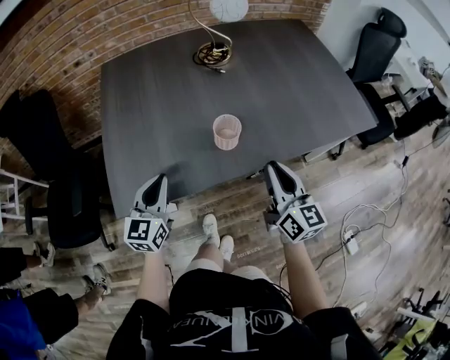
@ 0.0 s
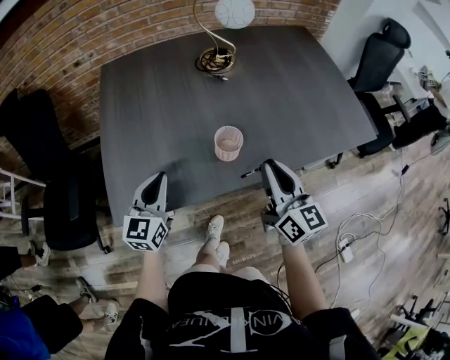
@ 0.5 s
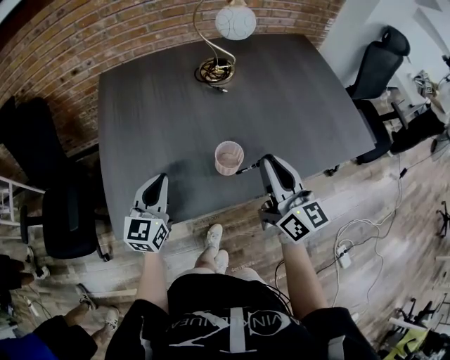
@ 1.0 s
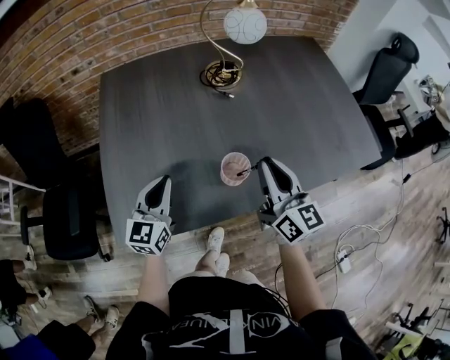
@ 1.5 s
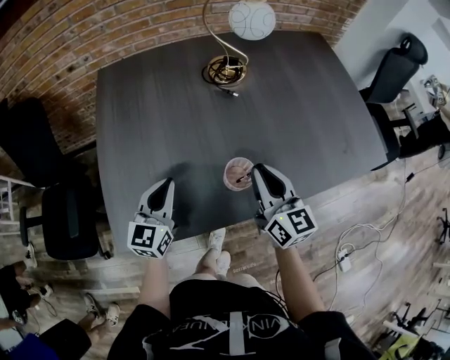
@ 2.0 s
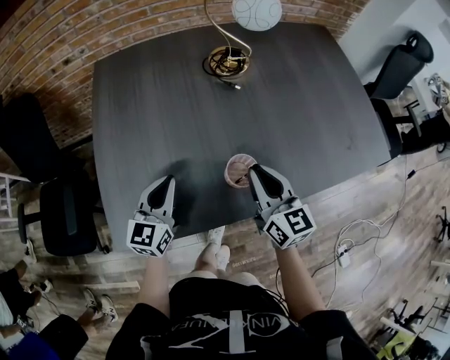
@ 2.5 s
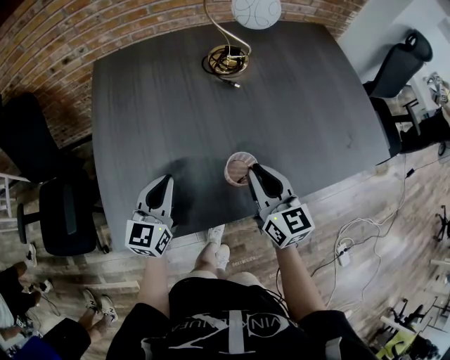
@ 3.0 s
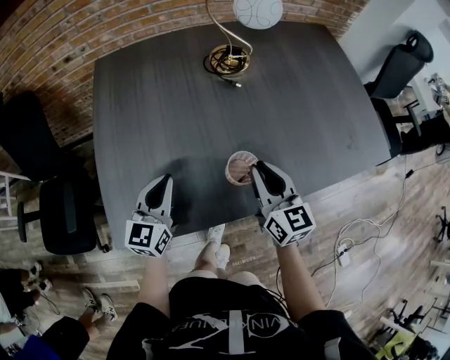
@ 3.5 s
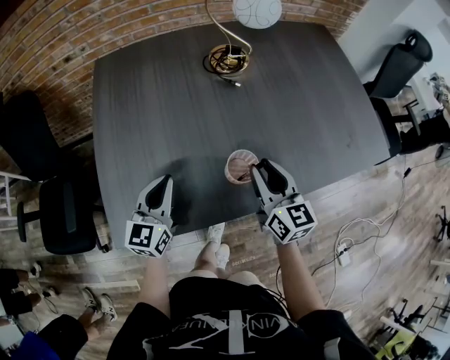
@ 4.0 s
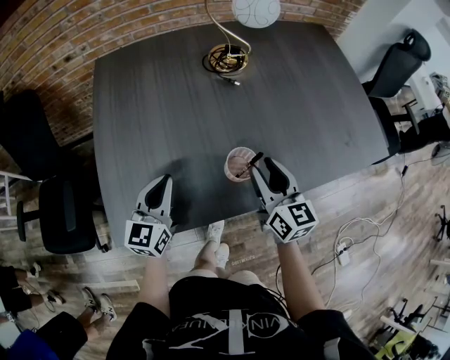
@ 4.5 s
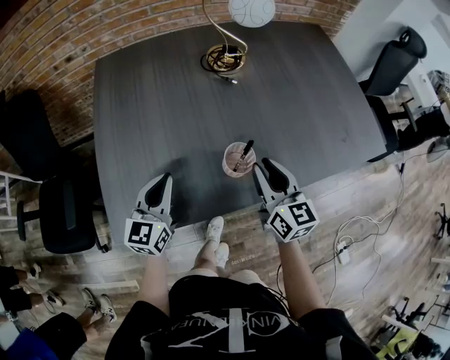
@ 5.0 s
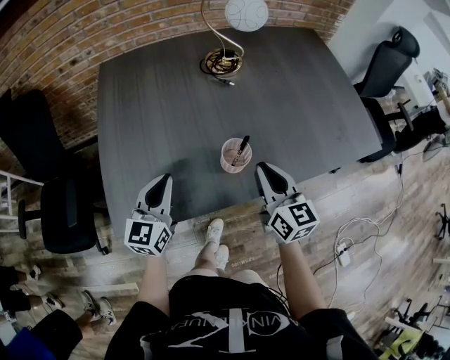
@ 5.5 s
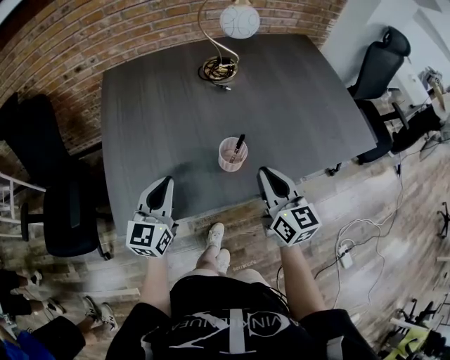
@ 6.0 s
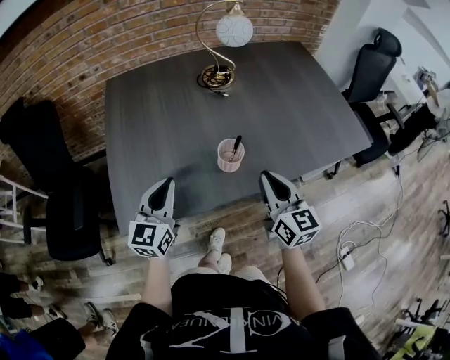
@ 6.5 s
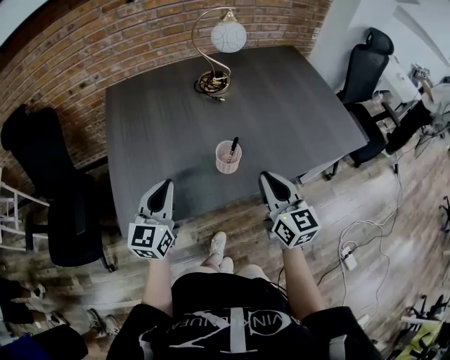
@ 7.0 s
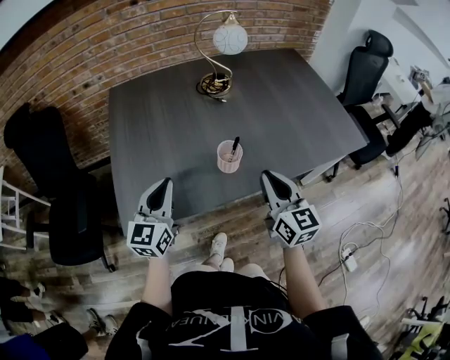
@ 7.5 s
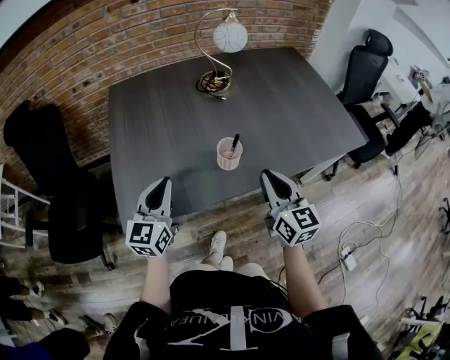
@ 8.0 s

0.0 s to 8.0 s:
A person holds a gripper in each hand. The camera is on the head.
0.0 to 2.0 s: The right gripper shifts roughly 15 cm forward and to the left; the left gripper moves forward, roughly 10 cm.
2.0 to 4.0 s: The grippers stay close to where they were, moving slightly.
4.0 to 6.0 s: The two grippers go roughly 5 cm backward.
6.0 to 8.0 s: The left gripper changes place by roughly 5 cm, while the right gripper moves backward, about 5 cm.

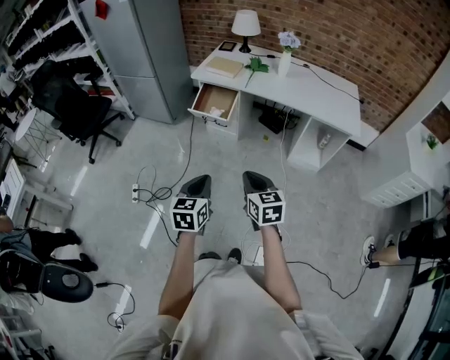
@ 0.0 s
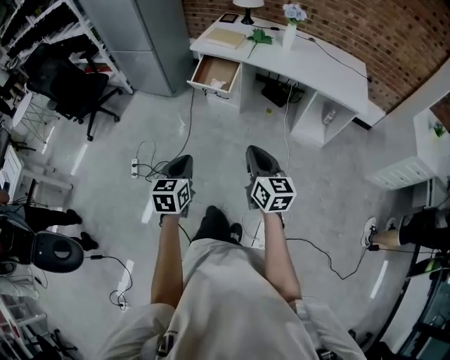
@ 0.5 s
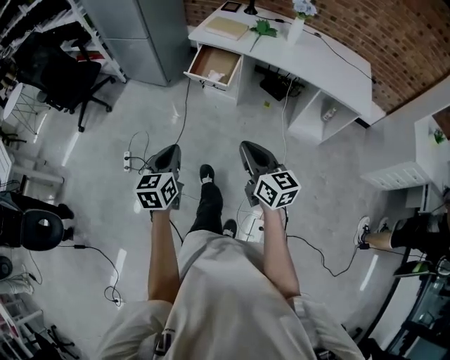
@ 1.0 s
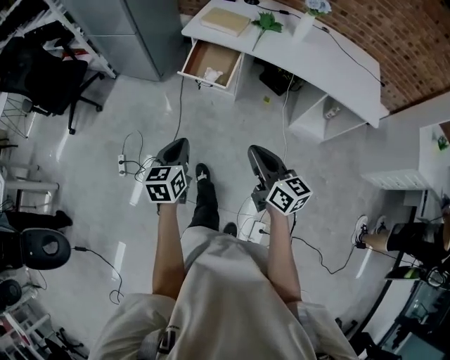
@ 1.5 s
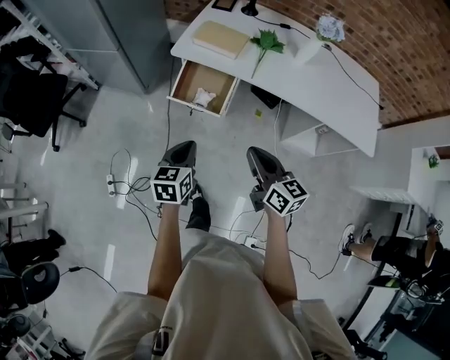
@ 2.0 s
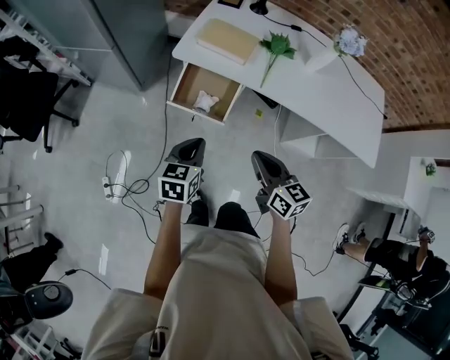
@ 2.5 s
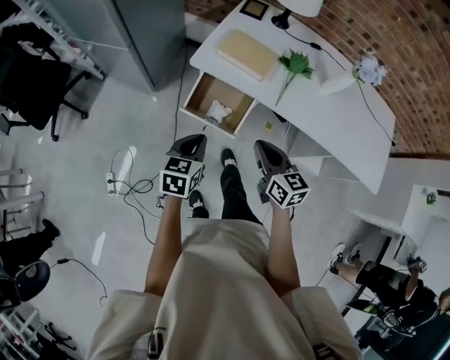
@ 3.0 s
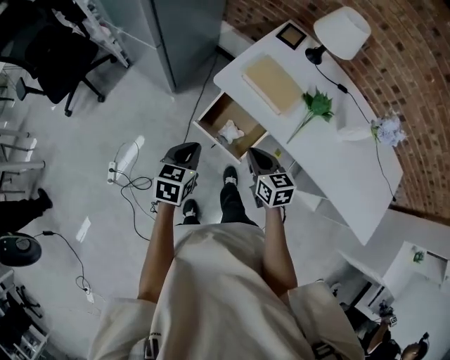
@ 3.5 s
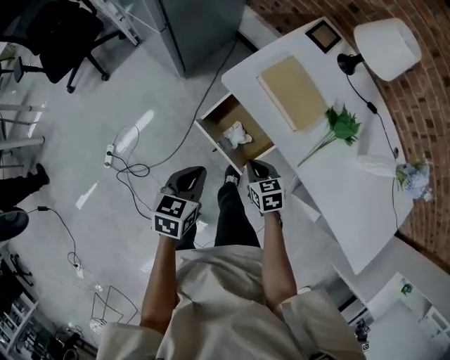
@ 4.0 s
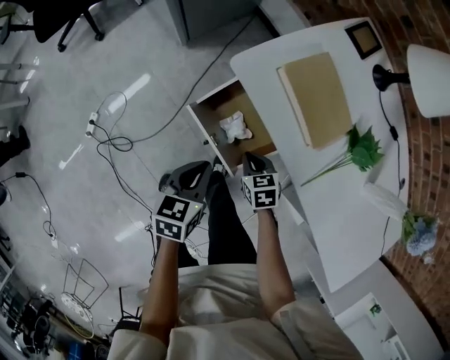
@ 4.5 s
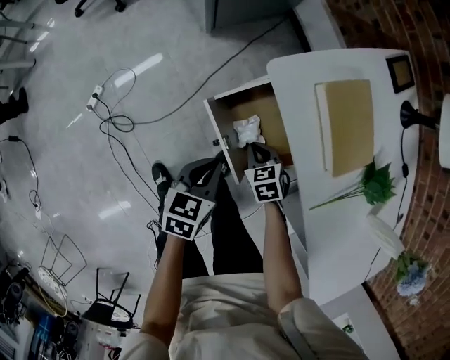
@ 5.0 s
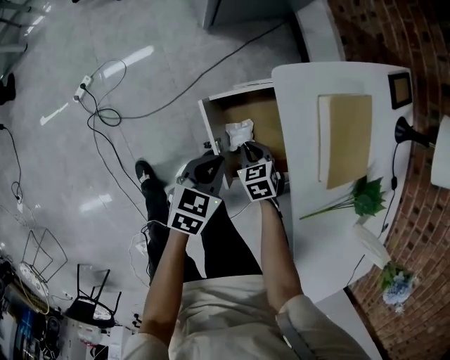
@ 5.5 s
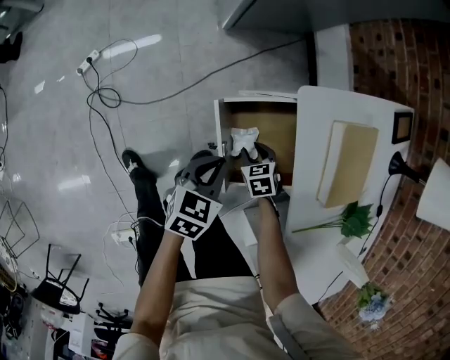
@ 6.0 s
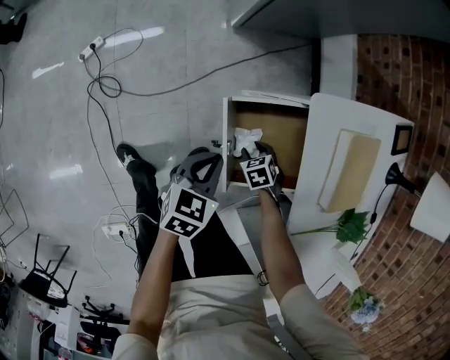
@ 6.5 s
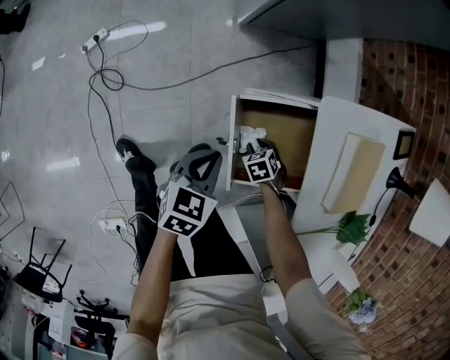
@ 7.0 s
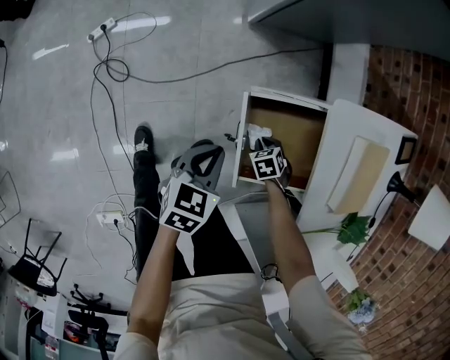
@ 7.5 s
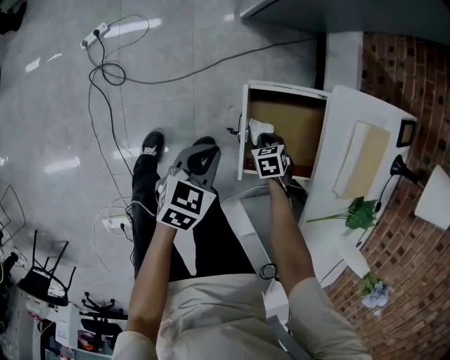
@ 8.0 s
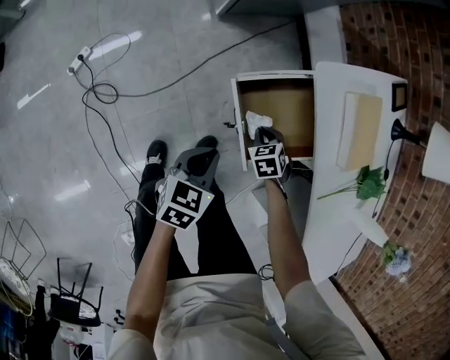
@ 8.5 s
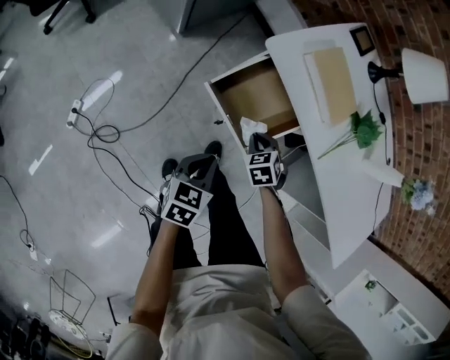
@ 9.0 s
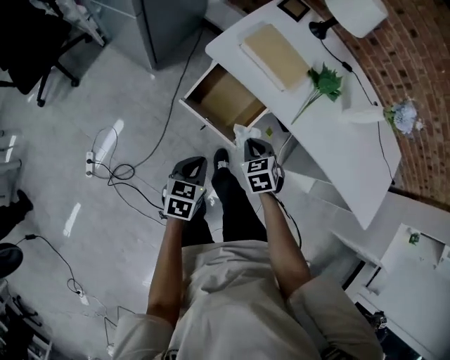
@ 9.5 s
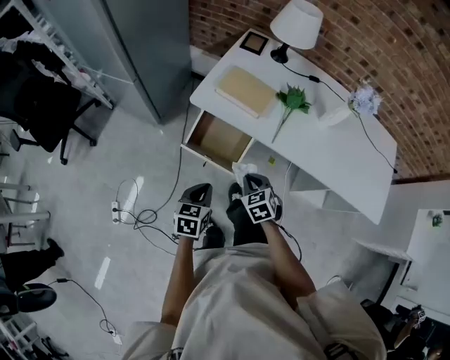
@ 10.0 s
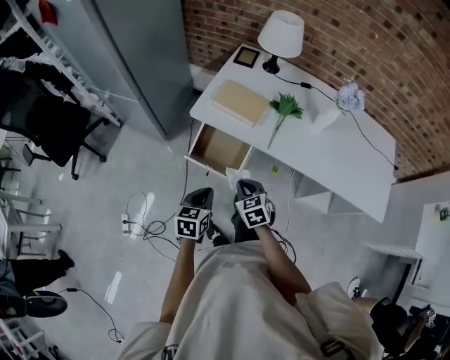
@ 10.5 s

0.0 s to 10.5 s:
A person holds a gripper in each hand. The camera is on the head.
0.0 to 2.0 s: Both grippers move forward, some 40 cm.
2.0 to 4.0 s: The right gripper shifts roughly 40 cm forward and downward, and tips its fingers downward by approximately 40 degrees. The left gripper travels forward and downward by about 25 cm.
4.0 to 6.5 s: The grippers both shift downward by roughly 20 cm. The left gripper turns by some 20 degrees; the right gripper twists approximately 40 degrees counterclockwise, seen from behind, and opens up.
6.5 to 8.5 s: The right gripper heads upward, covering approximately 5 cm, and closes its fingers. Meanwhile the left gripper moves roughly 10 cm.
8.5 to 10.5 s: The right gripper travels upward and backward by roughly 35 cm, and twists some 40 degrees clockwise, seen from behind. The left gripper goes some 20 cm upward, and rotates some 30 degrees.

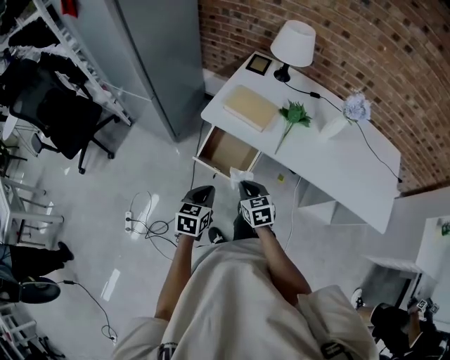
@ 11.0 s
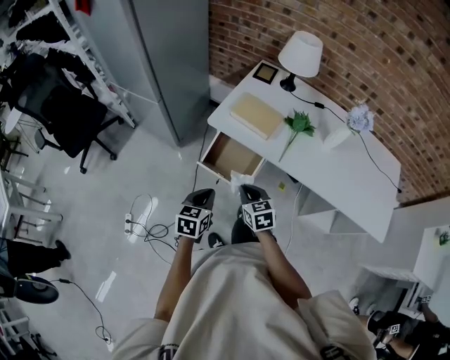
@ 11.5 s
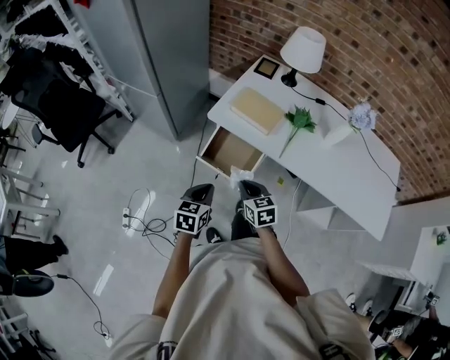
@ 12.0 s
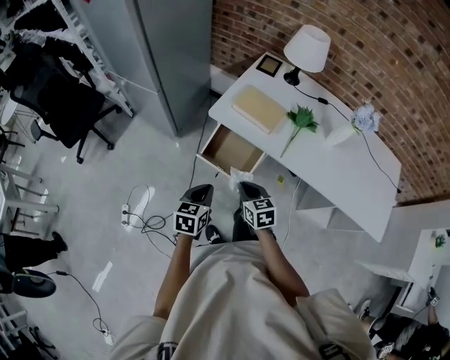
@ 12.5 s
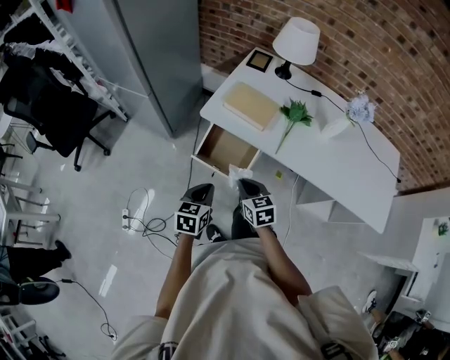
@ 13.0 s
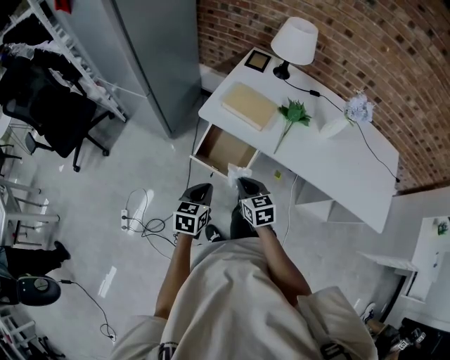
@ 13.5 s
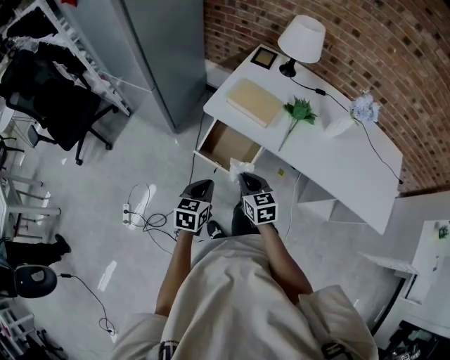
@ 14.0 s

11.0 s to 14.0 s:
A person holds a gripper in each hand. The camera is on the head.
11.0 to 14.0 s: The grippers stay close to where they were, moving slightly.

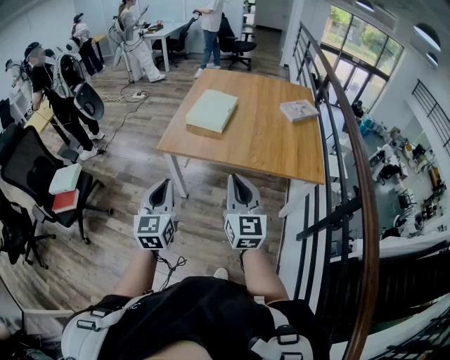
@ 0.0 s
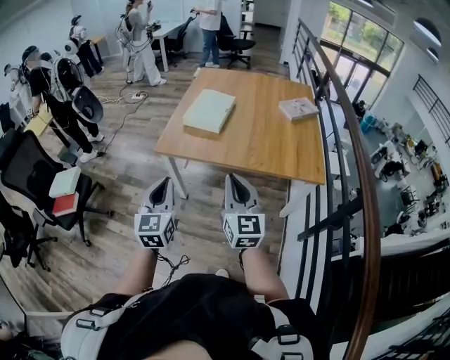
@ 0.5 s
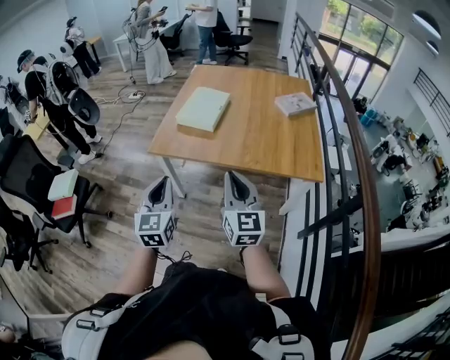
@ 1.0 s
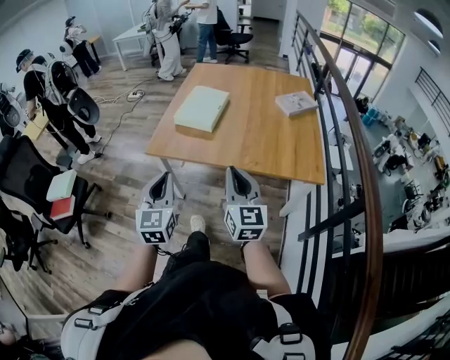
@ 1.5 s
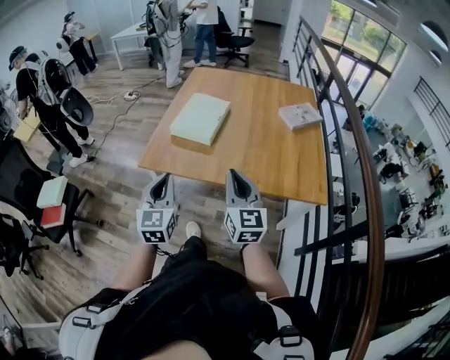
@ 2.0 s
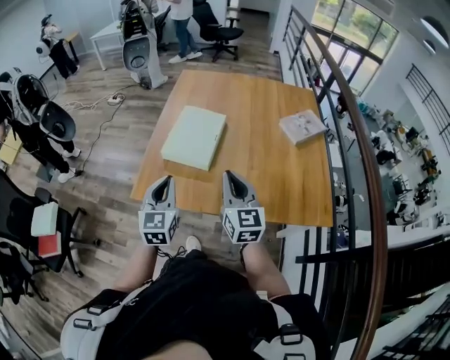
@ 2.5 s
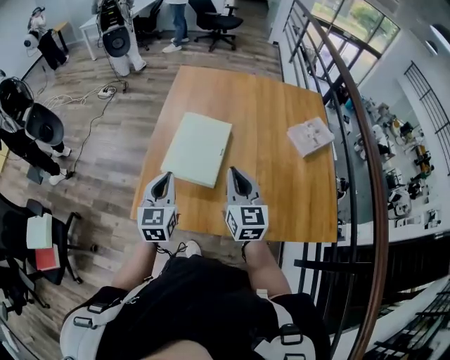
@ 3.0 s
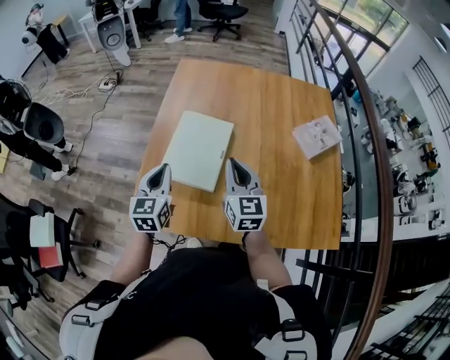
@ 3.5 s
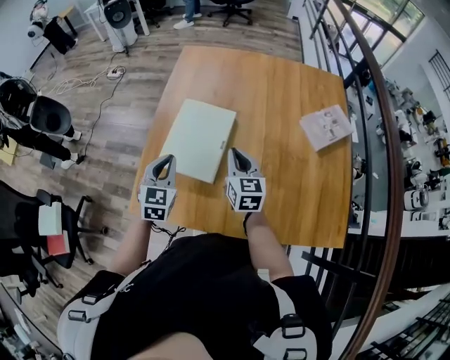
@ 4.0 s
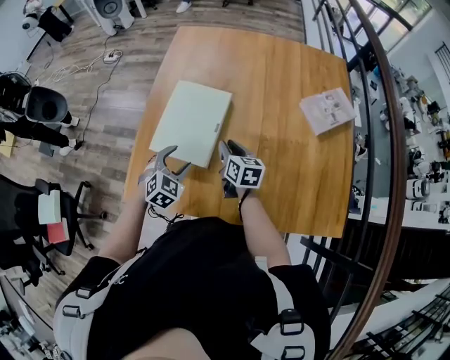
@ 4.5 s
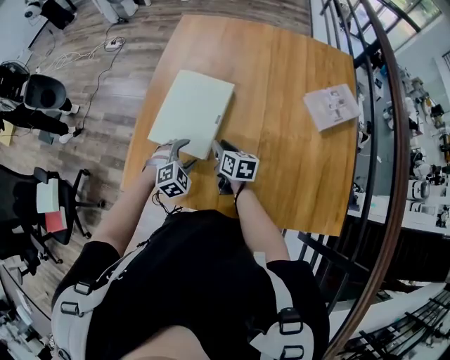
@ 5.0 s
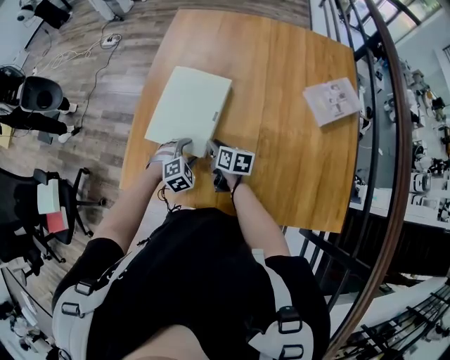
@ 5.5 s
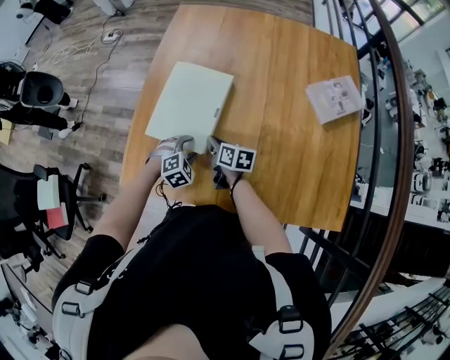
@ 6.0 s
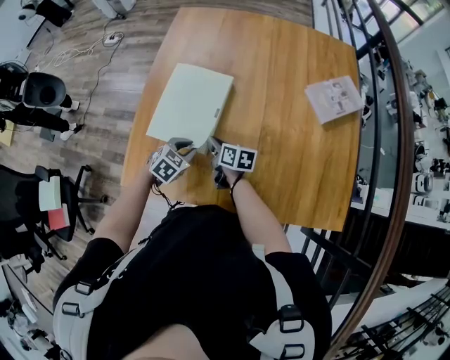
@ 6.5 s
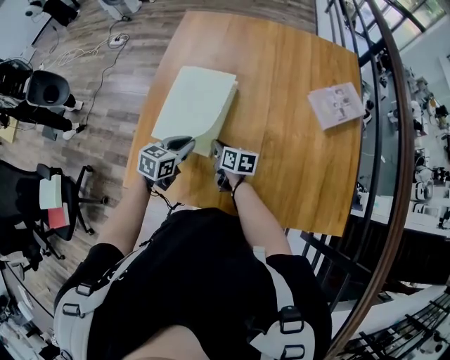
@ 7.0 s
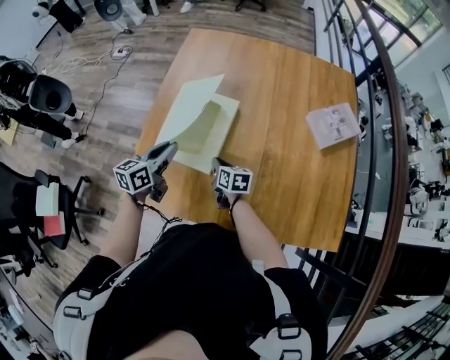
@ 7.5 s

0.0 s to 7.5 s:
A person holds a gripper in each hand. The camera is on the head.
0.0 to 2.0 s: The two grippers go some 15 cm forward.
2.0 to 4.0 s: The two grippers go about 40 cm forward. The right gripper changes its angle by some 20 degrees, while the left gripper swivels approximately 20 degrees.
4.0 to 5.5 s: Both grippers travel together downward, about 20 cm. The left gripper tips its fingers downward by about 40 degrees, and opens its fingers; the right gripper turns by some 40 degrees.
5.5 to 7.5 s: The left gripper shifts about 20 cm upward and to the left, twists roughly 70 degrees counterclockwise, seen from behind, and closes its fingers.
